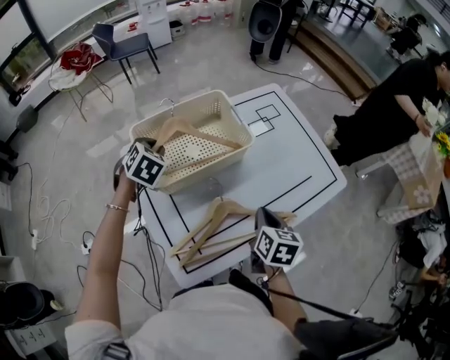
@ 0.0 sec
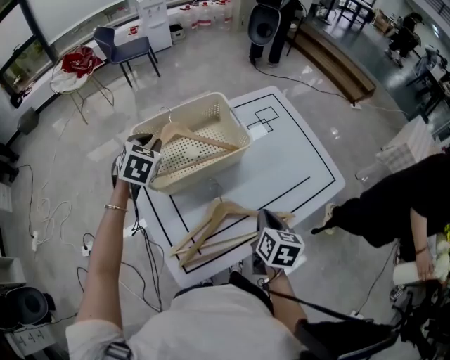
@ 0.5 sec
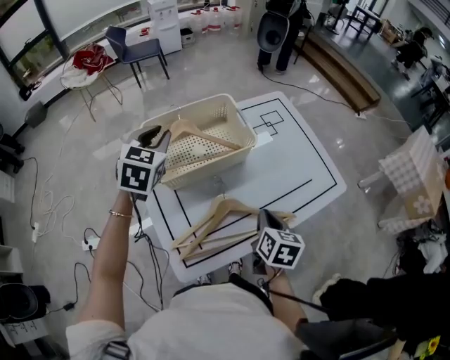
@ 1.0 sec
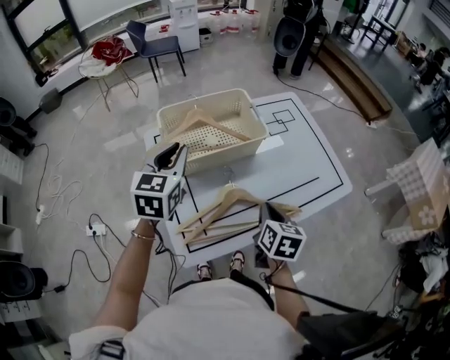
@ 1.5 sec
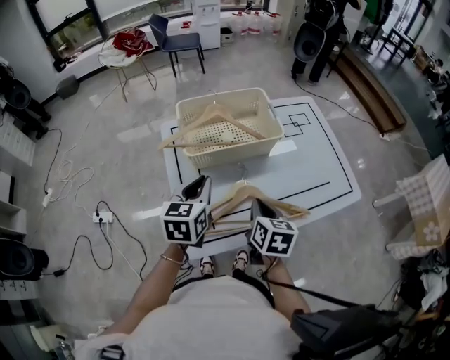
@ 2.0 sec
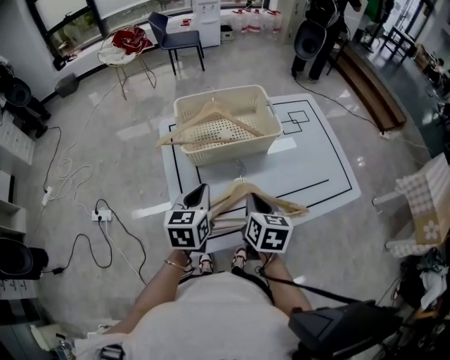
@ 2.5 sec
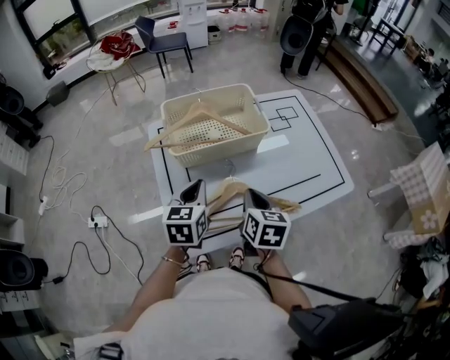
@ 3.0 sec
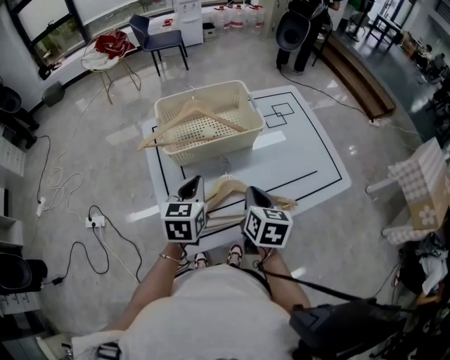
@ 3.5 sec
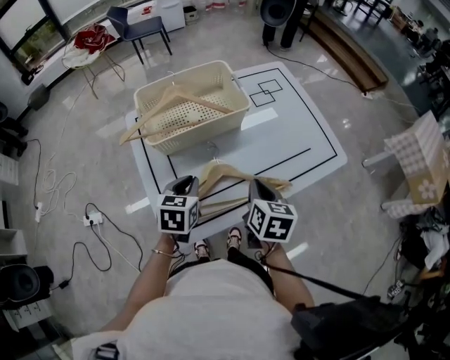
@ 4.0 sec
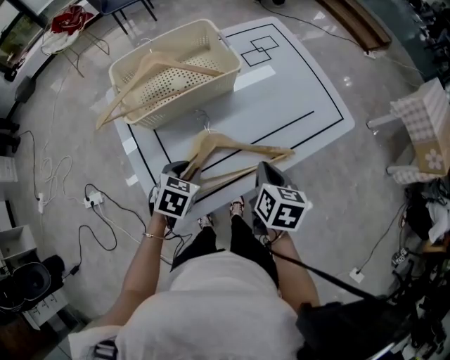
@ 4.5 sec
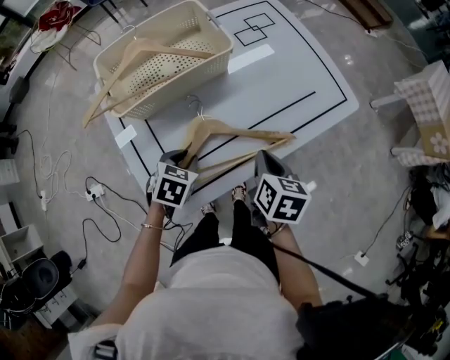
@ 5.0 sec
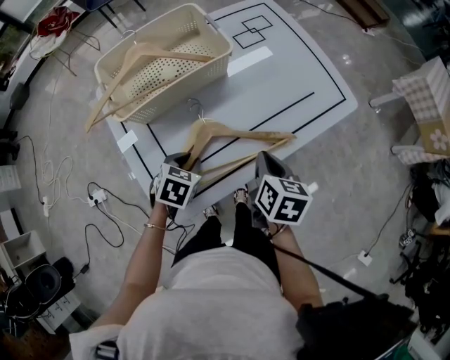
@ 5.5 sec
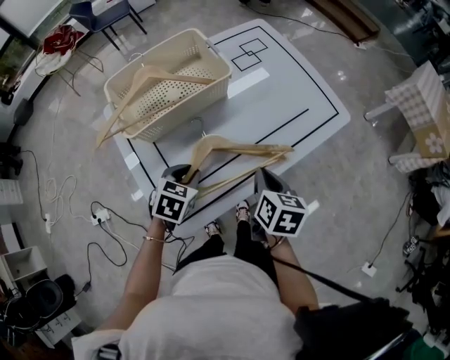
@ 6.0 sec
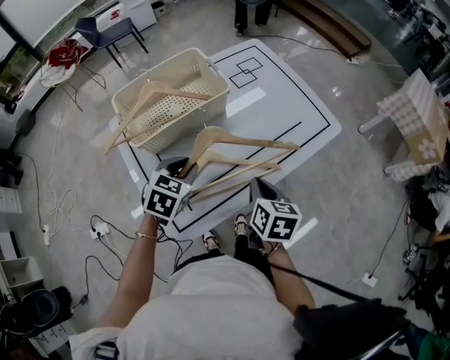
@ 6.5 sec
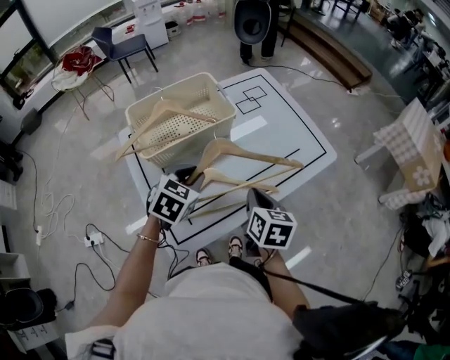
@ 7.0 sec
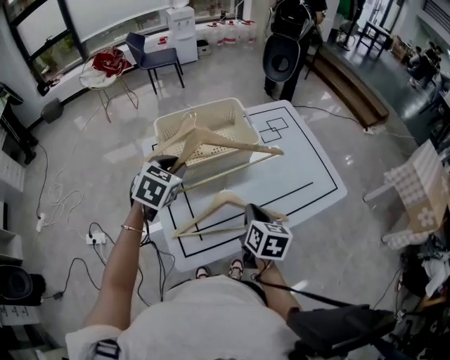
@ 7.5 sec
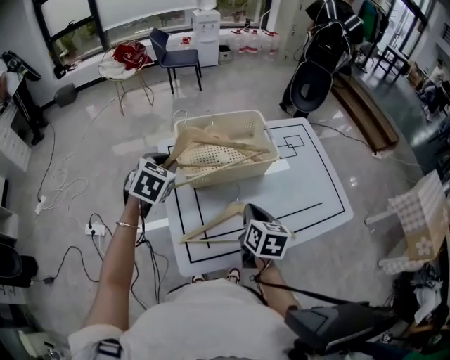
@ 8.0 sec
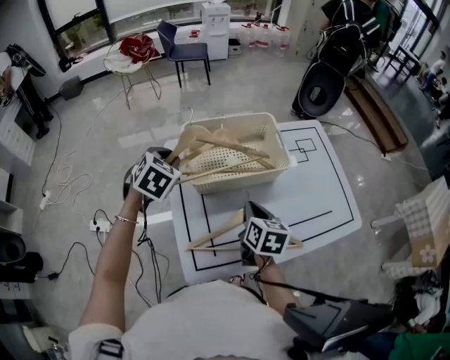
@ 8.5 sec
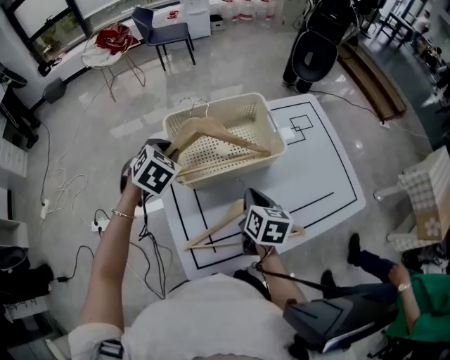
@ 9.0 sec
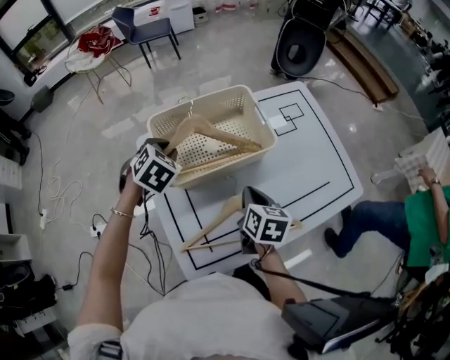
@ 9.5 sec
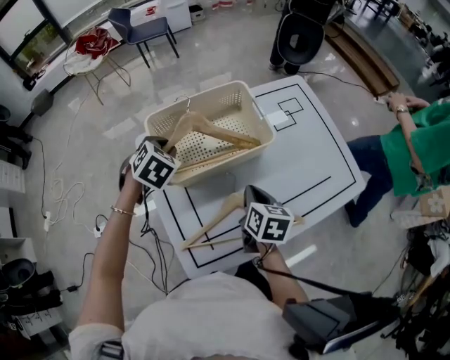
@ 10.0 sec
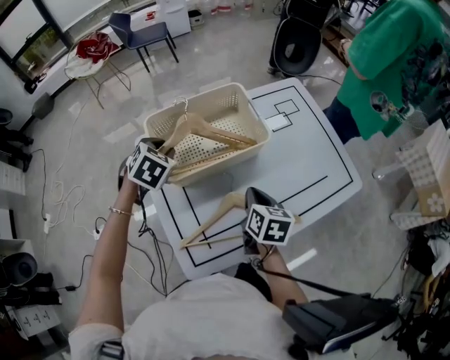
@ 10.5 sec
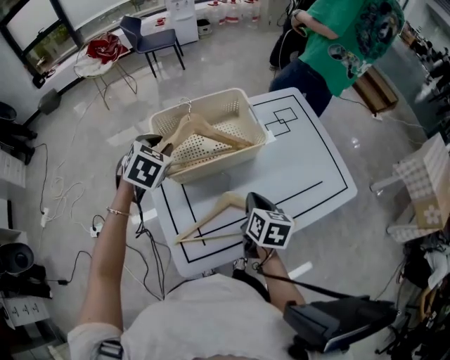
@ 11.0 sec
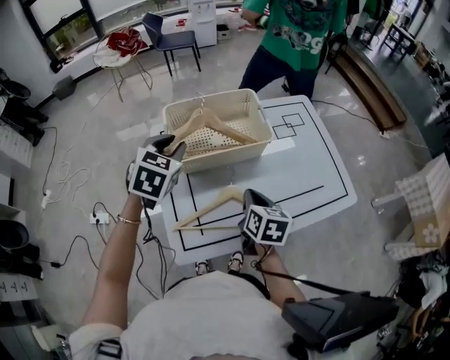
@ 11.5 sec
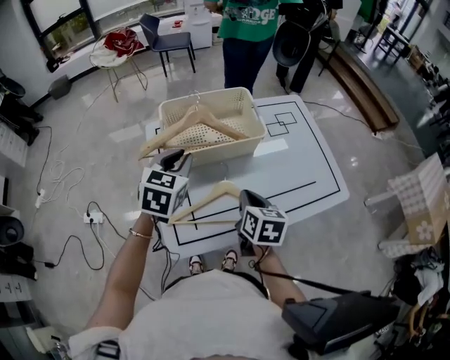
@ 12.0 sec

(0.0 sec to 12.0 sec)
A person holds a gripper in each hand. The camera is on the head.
0.0 sec - 2.0 sec: The right gripper goes about 10 cm to the left and backward, while the left gripper shifts roughly 25 cm backward, and twists approximately 40 degrees counterclockwise, seen from behind.
2.0 sec - 4.0 sec: The right gripper goes some 10 cm to the right; the left gripper shifts approximately 10 cm downward and to the right.
4.0 sec - 6.0 sec: The right gripper shifts by roughly 5 cm; the left gripper travels downward by approximately 5 cm, and swivels approximately 30 degrees.
6.0 sec - 8.0 sec: The left gripper moves to the left and upward, roughly 30 cm, and swivels about 30 degrees, while the right gripper is displaced to the left and upward by some 15 cm, and swivels approximately 20 degrees.
8.0 sec - 10.0 sec: The right gripper heads forward and downward, covering approximately 10 cm, while the left gripper is displaced forward, downward and to the right by some 15 cm, and turns by about 20 degrees.
10.0 sec - 12.0 sec: The right gripper shifts approximately 10 cm backward. Meanwhile the left gripper shifts some 20 cm backward and upward, and rotates about 40 degrees.

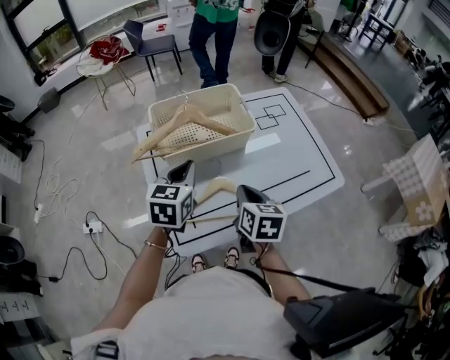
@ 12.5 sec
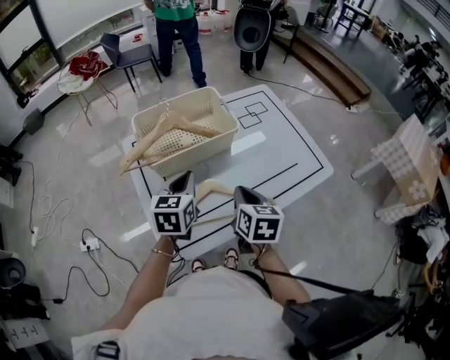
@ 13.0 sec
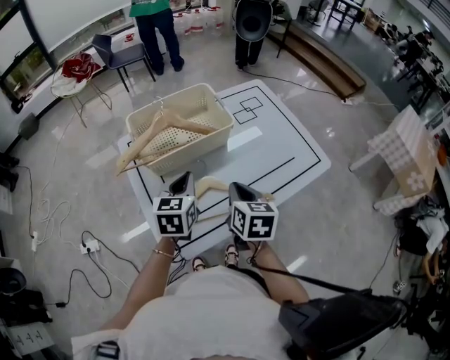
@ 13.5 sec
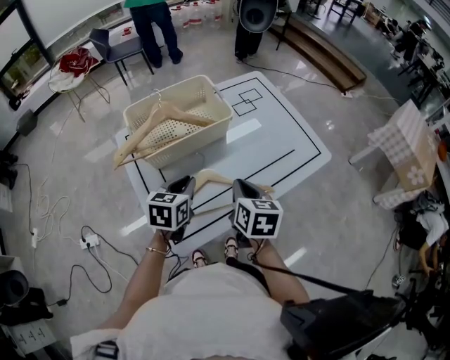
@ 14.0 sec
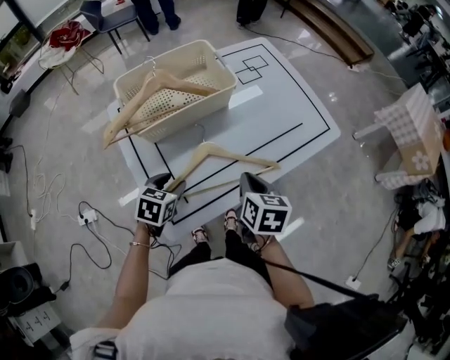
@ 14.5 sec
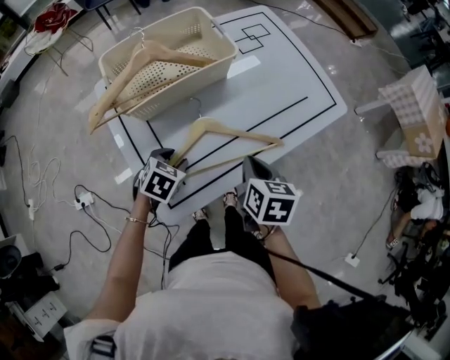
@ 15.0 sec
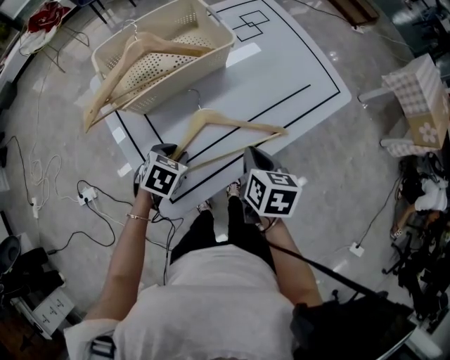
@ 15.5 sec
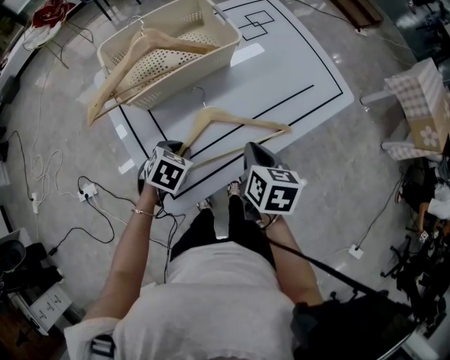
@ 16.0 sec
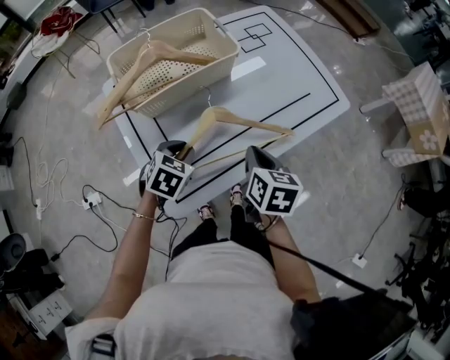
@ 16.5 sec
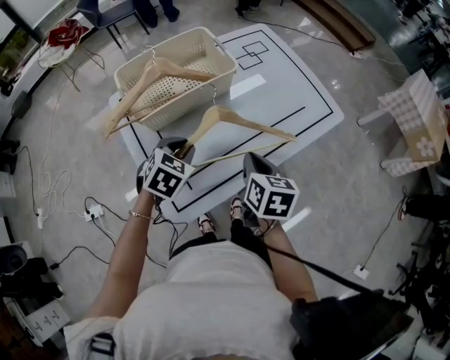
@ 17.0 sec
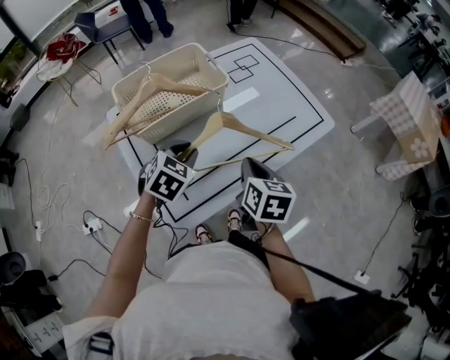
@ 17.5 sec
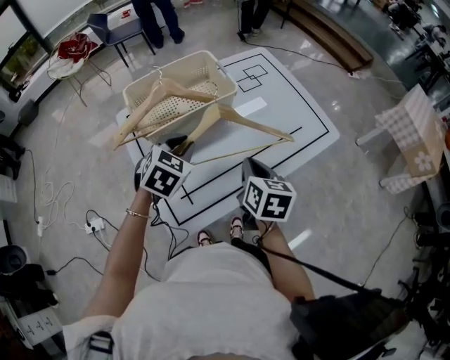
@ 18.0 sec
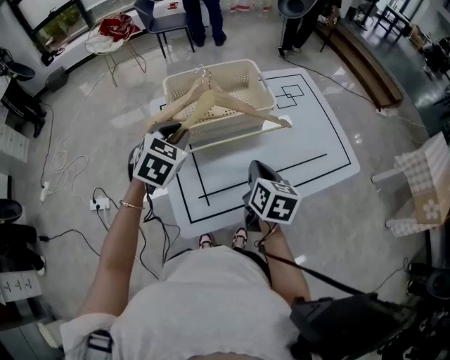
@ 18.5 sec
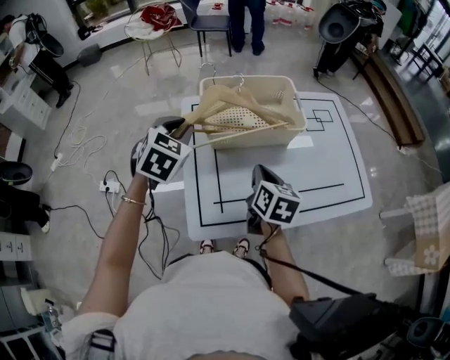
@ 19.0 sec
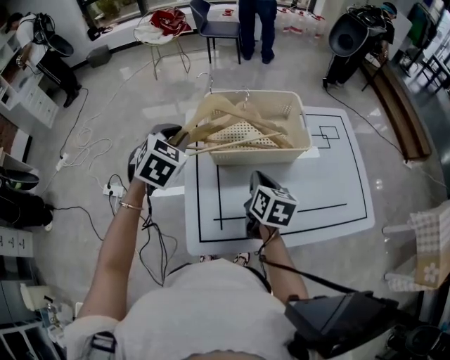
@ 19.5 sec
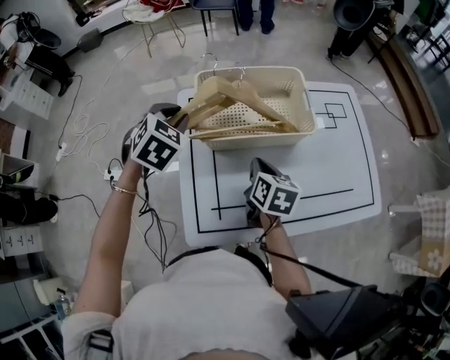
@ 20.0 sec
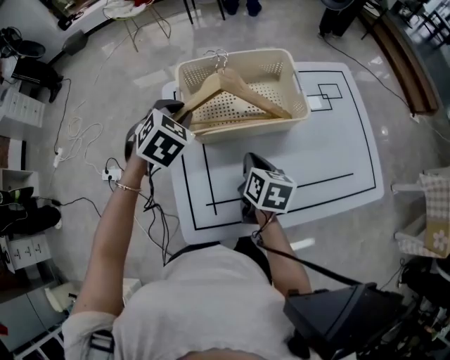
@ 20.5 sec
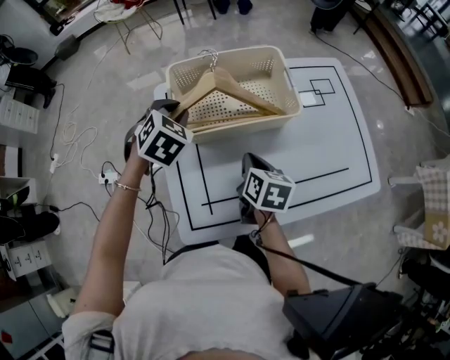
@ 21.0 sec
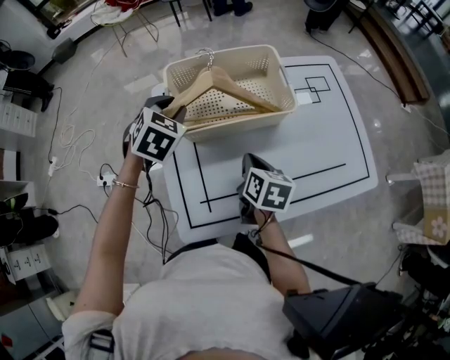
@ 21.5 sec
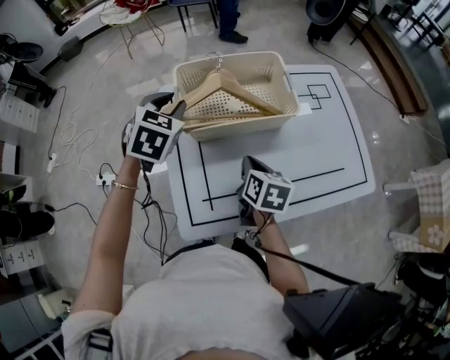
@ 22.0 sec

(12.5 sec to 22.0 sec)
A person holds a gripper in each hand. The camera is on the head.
12.5 sec - 14.5 sec: The left gripper heads downward and backward, covering some 20 cm, swivels some 30 degrees, and opens its fingers, while the right gripper shifts approximately 5 cm downward.
14.5 sec - 16.5 sec: The left gripper closes its fingers.
16.5 sec - 18.0 sec: The right gripper moves upward, some 5 cm. The left gripper goes some 15 cm upward and forward.
18.0 sec - 20.0 sec: The left gripper ends up some 20 cm from where it was, and changes its angle by approximately 30 degrees. The right gripper changes place by about 20 cm, and changes its angle by roughly 20 degrees.

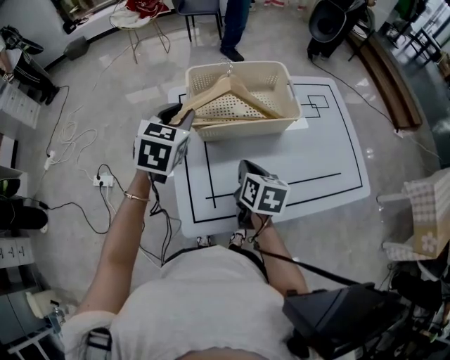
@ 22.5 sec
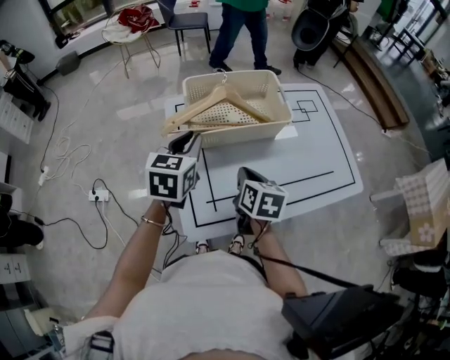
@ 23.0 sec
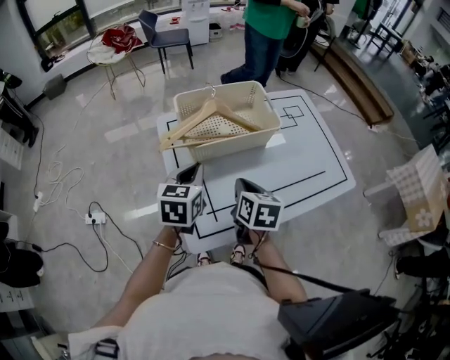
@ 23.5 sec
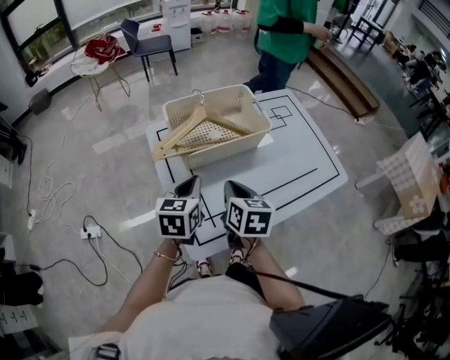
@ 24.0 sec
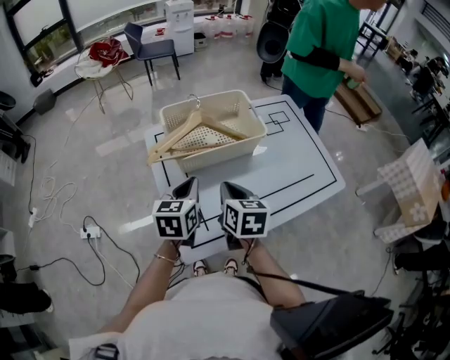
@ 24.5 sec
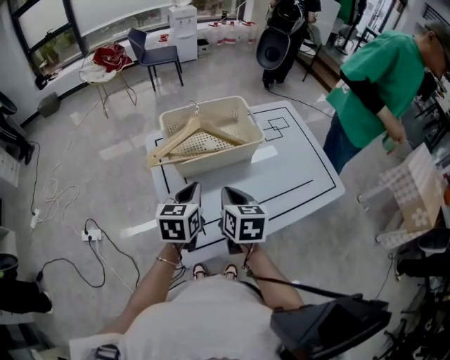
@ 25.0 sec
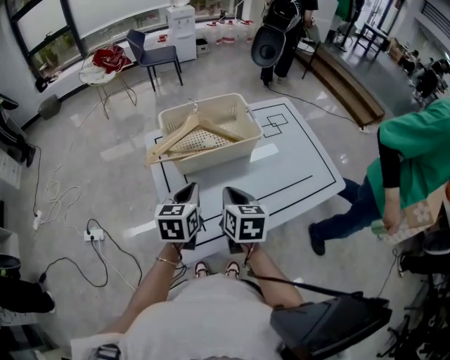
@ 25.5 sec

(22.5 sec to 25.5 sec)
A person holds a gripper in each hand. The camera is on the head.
22.5 sec - 24.0 sec: The left gripper shifts some 10 cm backward and downward, rotates some 20 degrees, and closes, while the right gripper moves about 5 cm.
24.0 sec - 25.5 sec: The grippers stay close to where they were, moving slightly.

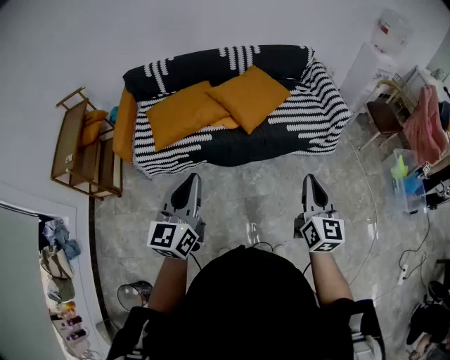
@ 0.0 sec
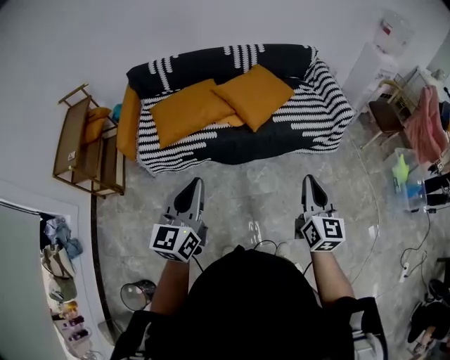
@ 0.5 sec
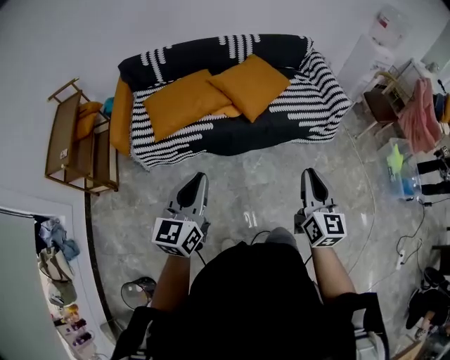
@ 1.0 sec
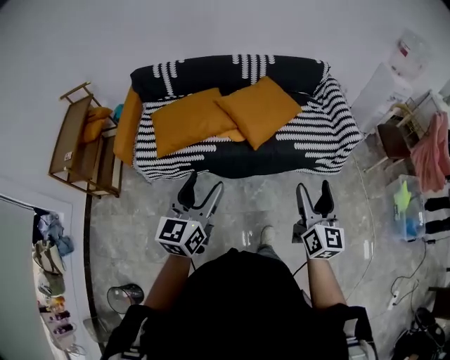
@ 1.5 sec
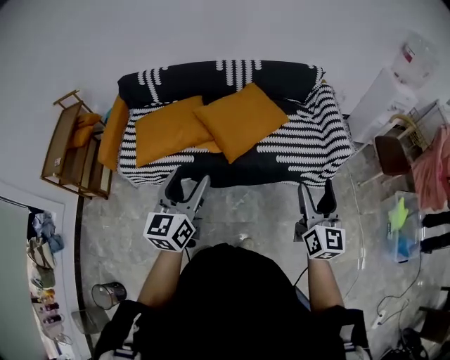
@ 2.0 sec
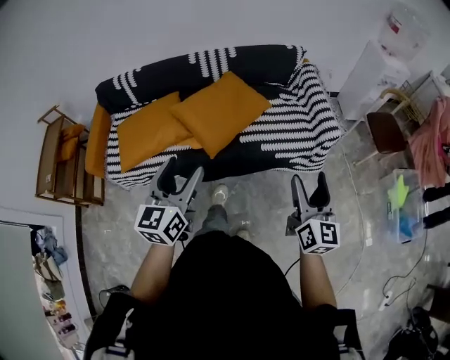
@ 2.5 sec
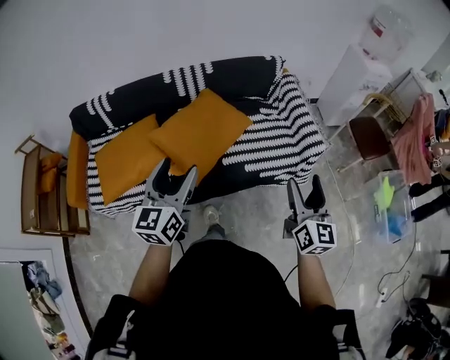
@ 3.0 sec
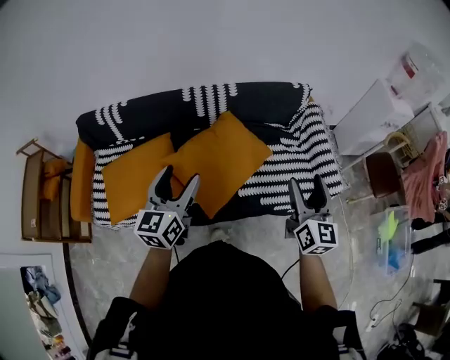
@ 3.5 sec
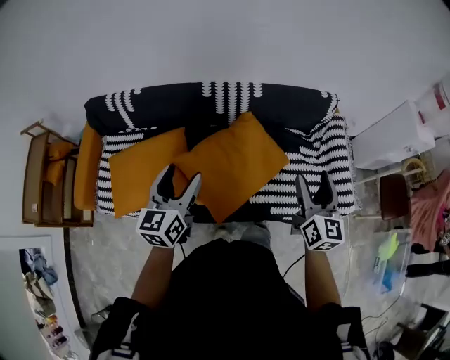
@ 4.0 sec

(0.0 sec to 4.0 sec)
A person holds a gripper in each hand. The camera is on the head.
0.0 sec - 2.0 sec: The two grippers go about 25 cm forward and to the right. The right gripper opens up; the left gripper opens.
2.0 sec - 4.0 sec: The grippers both shift forward by about 40 cm.
